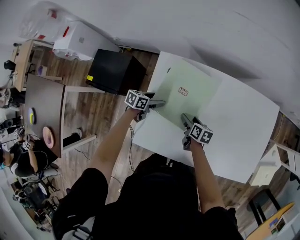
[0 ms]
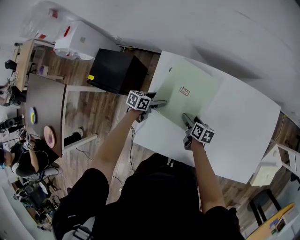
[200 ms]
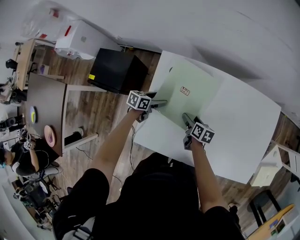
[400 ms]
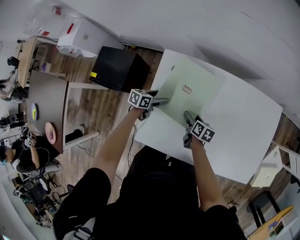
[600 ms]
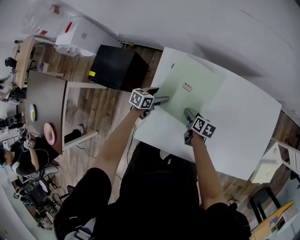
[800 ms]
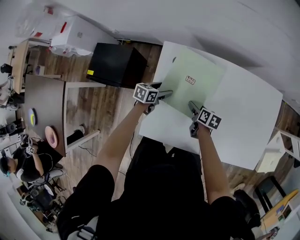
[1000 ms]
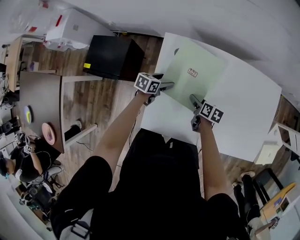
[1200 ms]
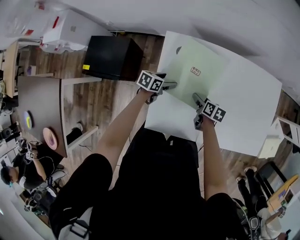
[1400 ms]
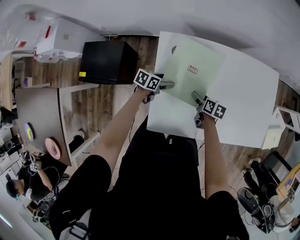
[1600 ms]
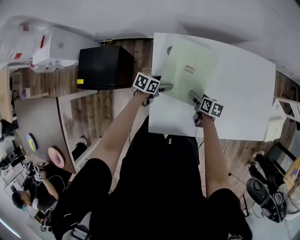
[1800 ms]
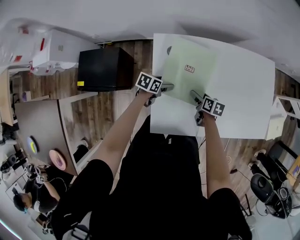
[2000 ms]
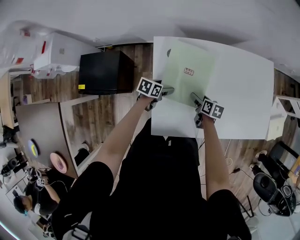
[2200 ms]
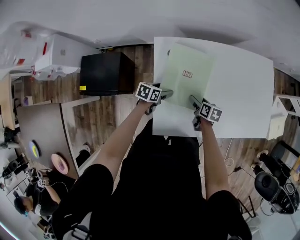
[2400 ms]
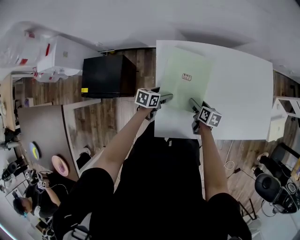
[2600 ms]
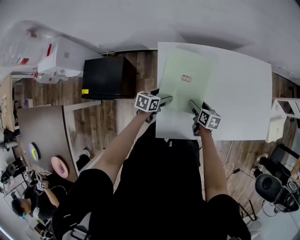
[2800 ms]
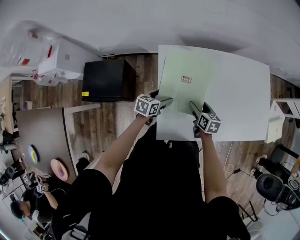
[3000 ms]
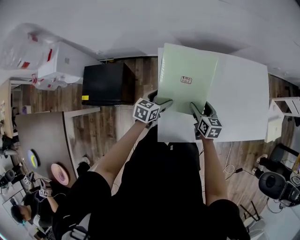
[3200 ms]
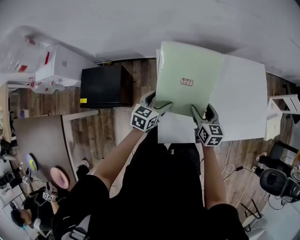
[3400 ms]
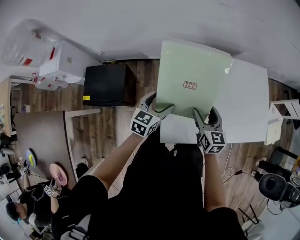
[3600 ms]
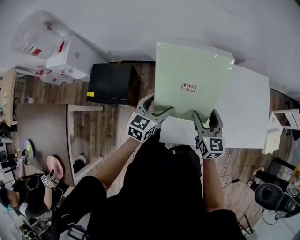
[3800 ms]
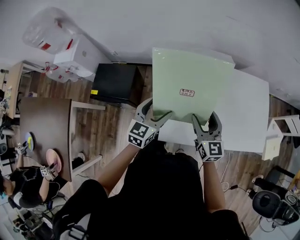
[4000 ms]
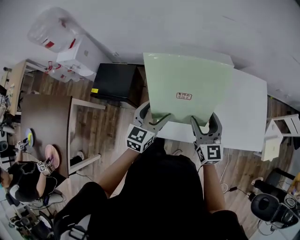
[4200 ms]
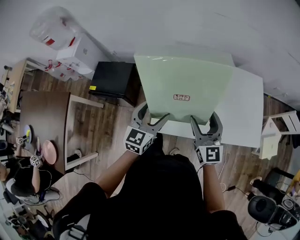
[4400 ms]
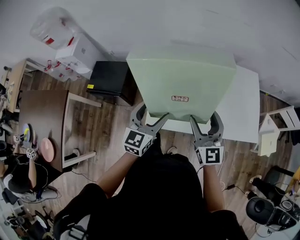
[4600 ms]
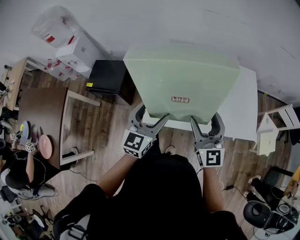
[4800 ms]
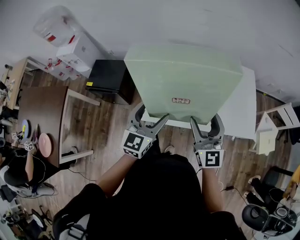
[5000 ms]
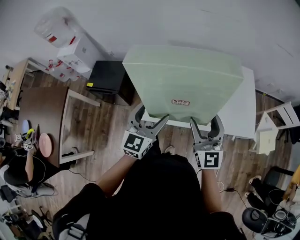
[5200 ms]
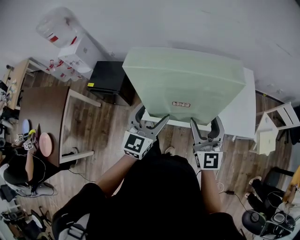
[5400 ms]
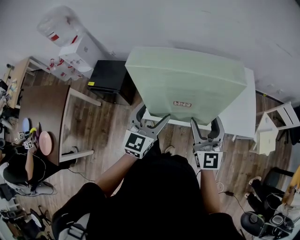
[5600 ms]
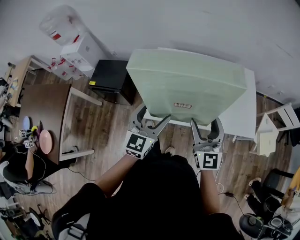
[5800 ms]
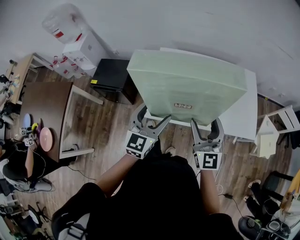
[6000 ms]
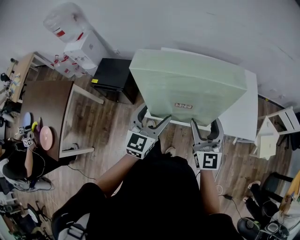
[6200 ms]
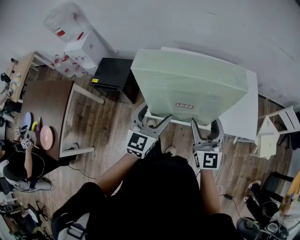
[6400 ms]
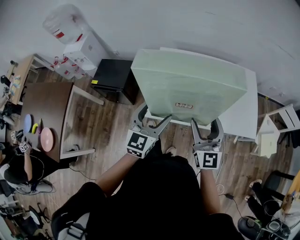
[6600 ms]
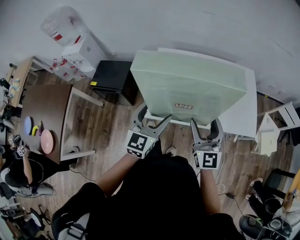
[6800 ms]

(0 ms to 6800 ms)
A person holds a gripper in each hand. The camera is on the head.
0 ms - 1400 ms: The grippers move only a little.
1400 ms - 2800 ms: The left gripper moves backward, about 5 cm; the right gripper ends up some 5 cm from where it was.
2800 ms - 4000 ms: The grippers both shift upward by approximately 25 cm. The right gripper tips its fingers upward by about 30 degrees. The left gripper swivels some 40 degrees.
4000 ms - 5400 ms: The two grippers go about 25 cm backward, to the right and upward. The right gripper turns by approximately 20 degrees.
5400 ms - 6800 ms: The grippers move only a little.

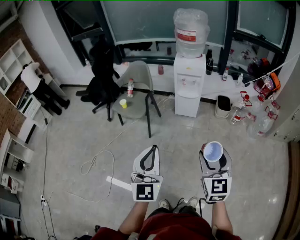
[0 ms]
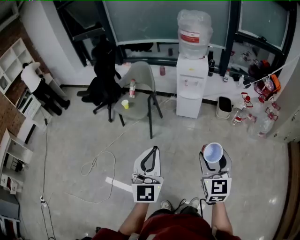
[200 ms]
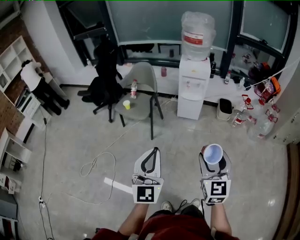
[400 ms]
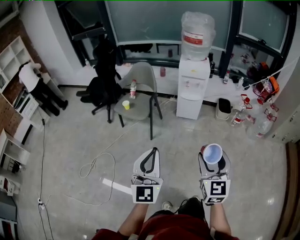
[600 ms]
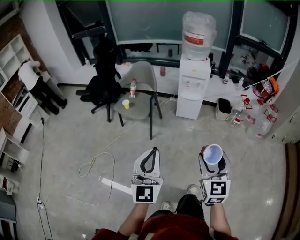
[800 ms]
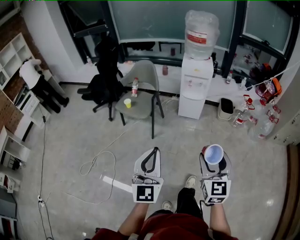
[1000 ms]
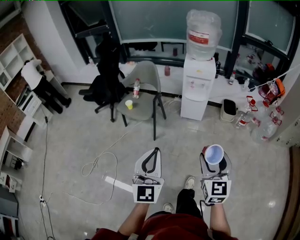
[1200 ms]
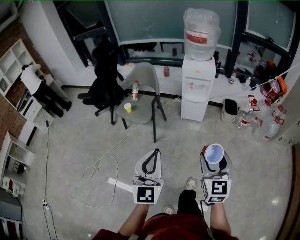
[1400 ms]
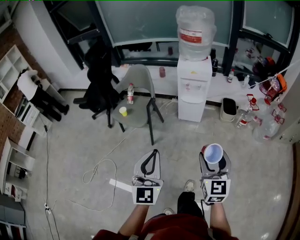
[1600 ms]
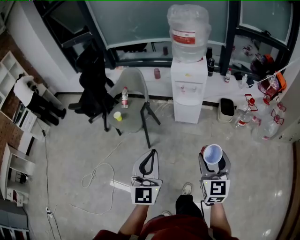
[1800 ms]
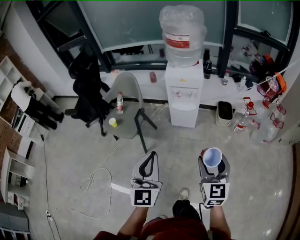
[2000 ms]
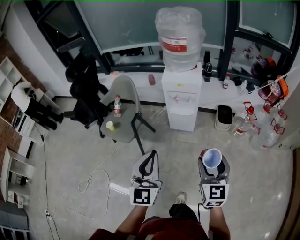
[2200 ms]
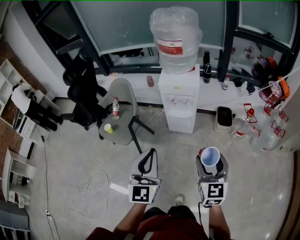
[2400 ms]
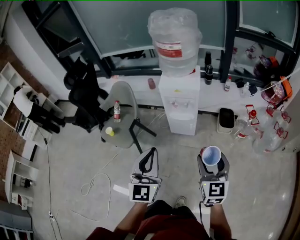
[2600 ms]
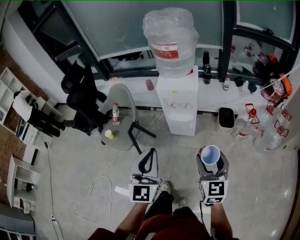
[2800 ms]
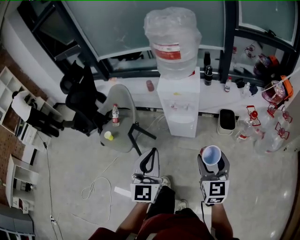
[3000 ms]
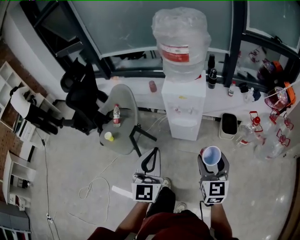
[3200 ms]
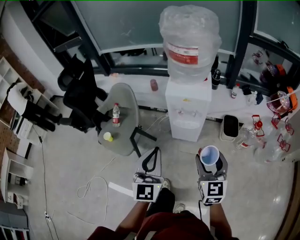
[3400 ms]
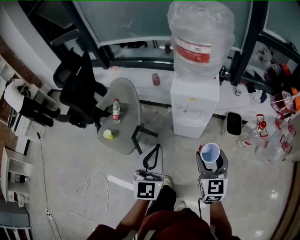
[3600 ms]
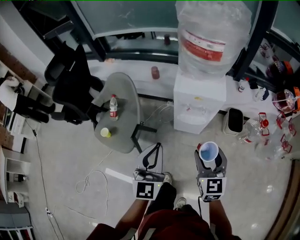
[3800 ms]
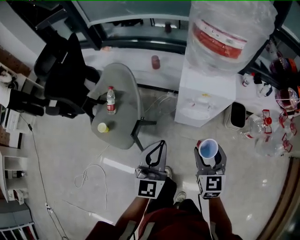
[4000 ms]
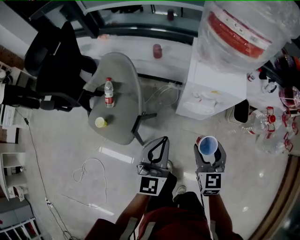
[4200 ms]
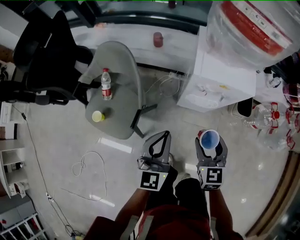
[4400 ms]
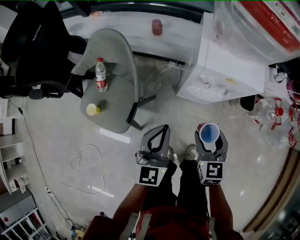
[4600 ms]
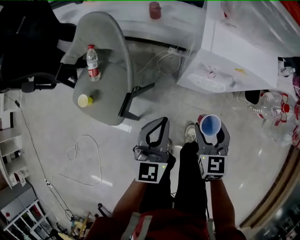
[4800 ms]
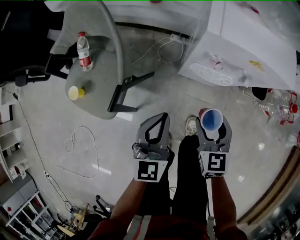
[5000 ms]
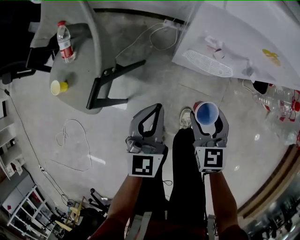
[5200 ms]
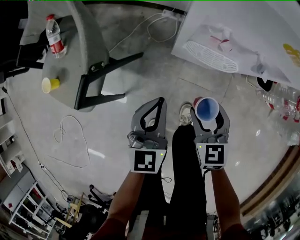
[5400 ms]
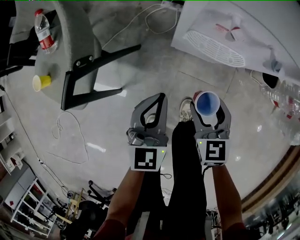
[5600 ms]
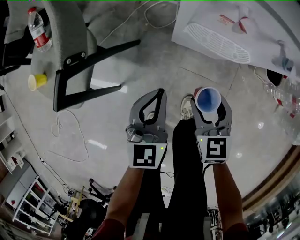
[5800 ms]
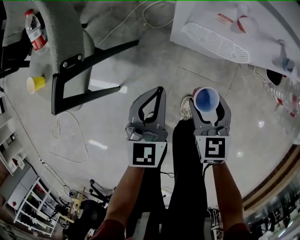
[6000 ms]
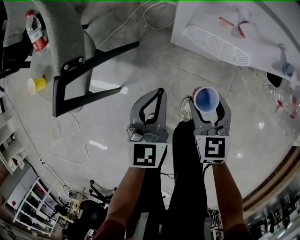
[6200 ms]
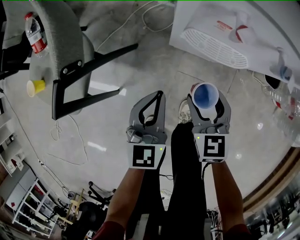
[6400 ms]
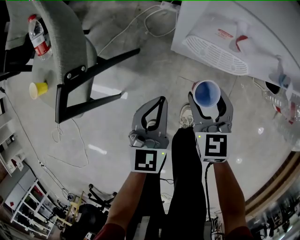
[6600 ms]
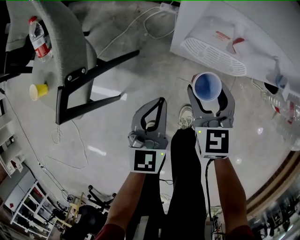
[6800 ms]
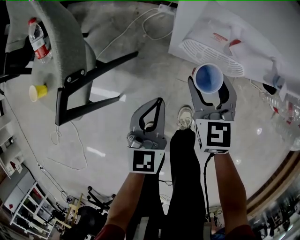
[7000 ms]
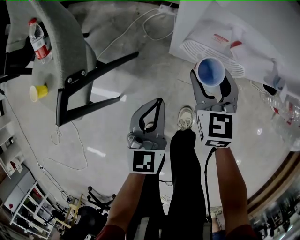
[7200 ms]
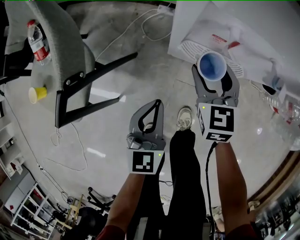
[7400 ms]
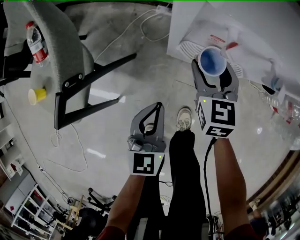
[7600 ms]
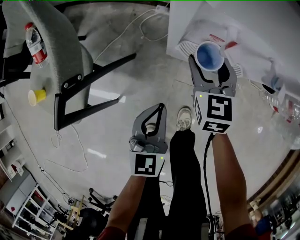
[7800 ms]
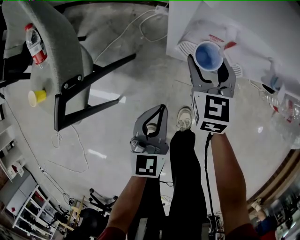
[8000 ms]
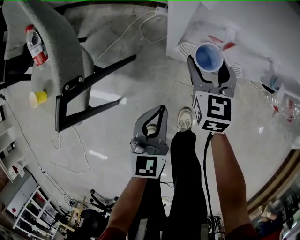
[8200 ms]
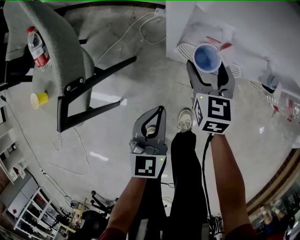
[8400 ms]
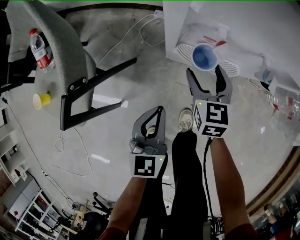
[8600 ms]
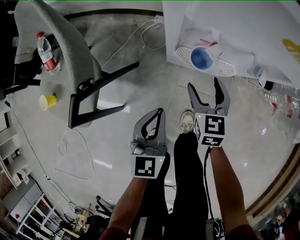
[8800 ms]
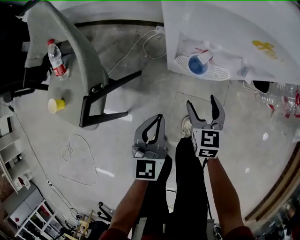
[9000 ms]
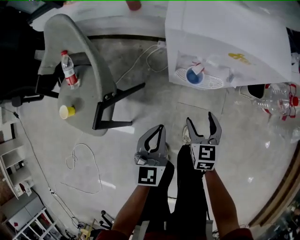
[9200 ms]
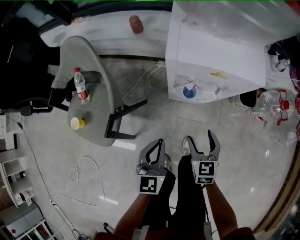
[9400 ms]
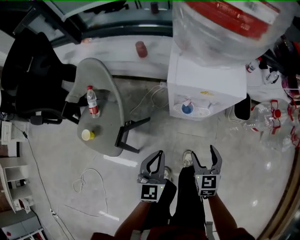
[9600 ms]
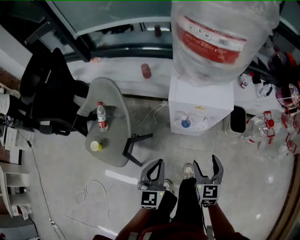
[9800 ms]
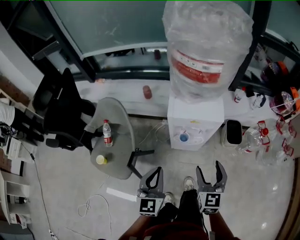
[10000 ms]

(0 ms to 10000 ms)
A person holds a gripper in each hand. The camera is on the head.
0 ms - 1400 ms: Both grippers move forward and to the left, about 10 cm.
1400 ms - 2800 ms: The two grippers go some 35 cm forward and to the right.
2800 ms - 4200 ms: The right gripper goes some 35 cm forward, to the left and downward; the left gripper moves forward, downward and to the left, roughly 35 cm.
4200 ms - 5800 ms: Both grippers move downward, some 35 cm.
5800 ms - 7200 ms: The right gripper shifts approximately 15 cm forward.
7200 ms - 8600 ms: The grippers move only a little.
8600 ms - 10000 ms: The left gripper travels upward by approximately 40 cm; the right gripper travels upward and backward by roughly 50 cm, and changes its angle by some 20 degrees.

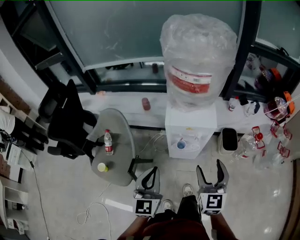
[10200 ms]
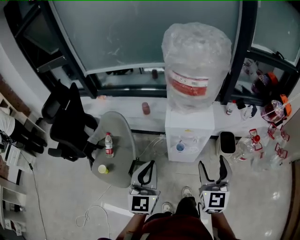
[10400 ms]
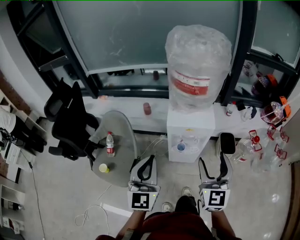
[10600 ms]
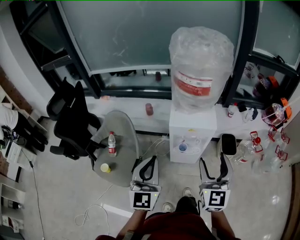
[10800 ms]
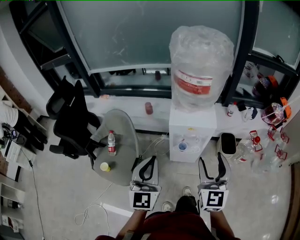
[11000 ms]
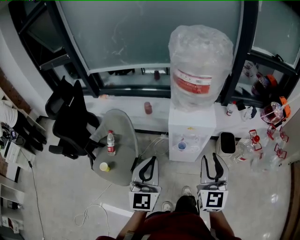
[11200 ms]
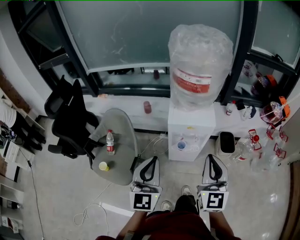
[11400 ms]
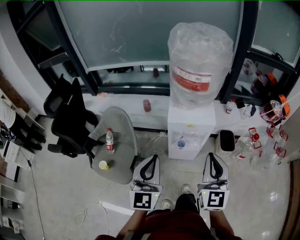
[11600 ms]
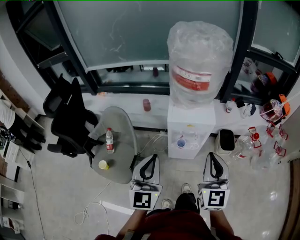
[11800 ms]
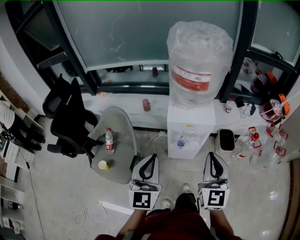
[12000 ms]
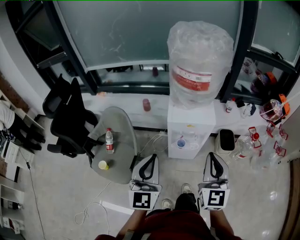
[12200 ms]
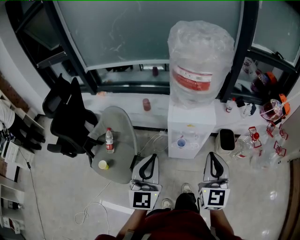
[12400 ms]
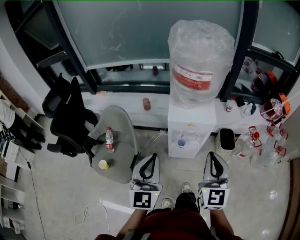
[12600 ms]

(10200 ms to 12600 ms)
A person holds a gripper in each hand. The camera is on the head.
10200 ms - 11400 ms: The grippers both shift upward by about 10 cm. The right gripper closes.
11400 ms - 12600 ms: The two grippers keep their place.

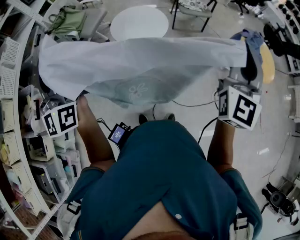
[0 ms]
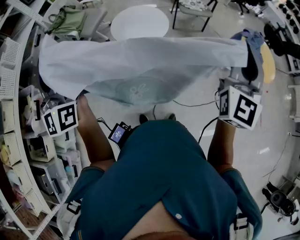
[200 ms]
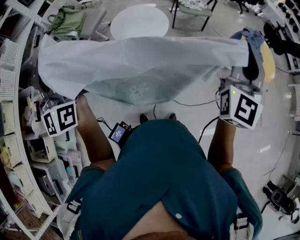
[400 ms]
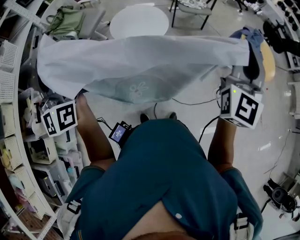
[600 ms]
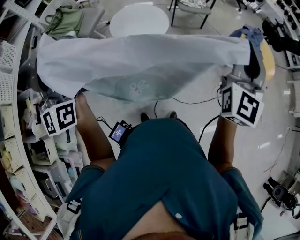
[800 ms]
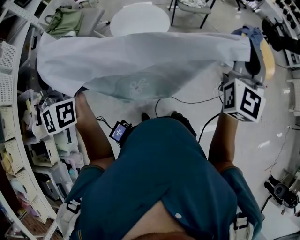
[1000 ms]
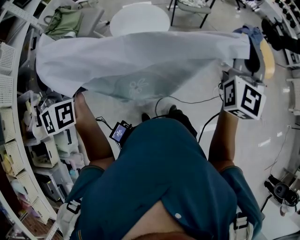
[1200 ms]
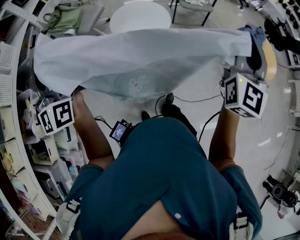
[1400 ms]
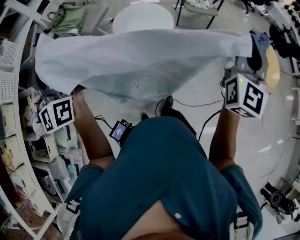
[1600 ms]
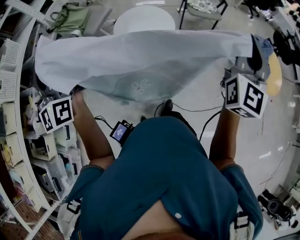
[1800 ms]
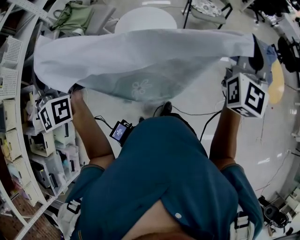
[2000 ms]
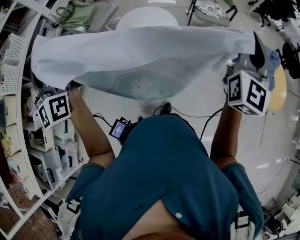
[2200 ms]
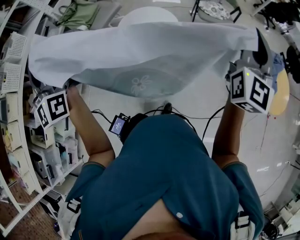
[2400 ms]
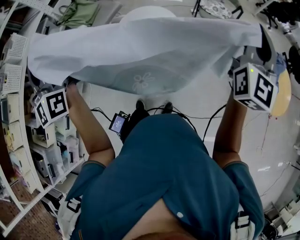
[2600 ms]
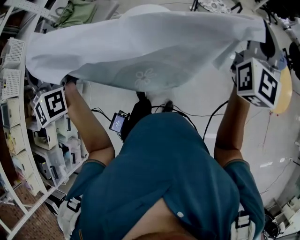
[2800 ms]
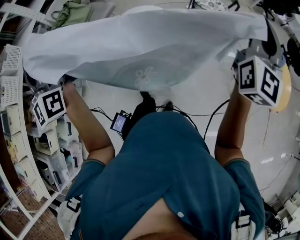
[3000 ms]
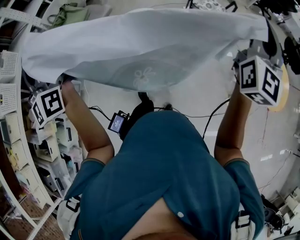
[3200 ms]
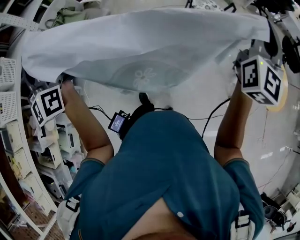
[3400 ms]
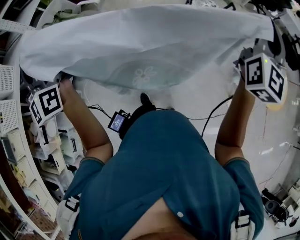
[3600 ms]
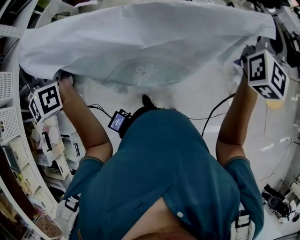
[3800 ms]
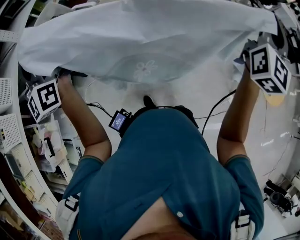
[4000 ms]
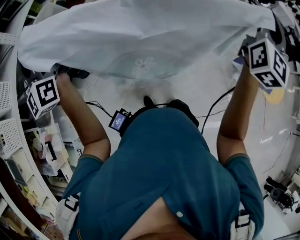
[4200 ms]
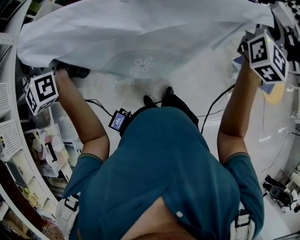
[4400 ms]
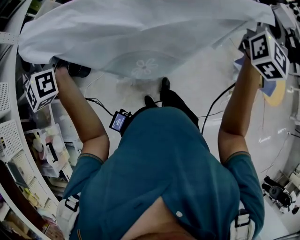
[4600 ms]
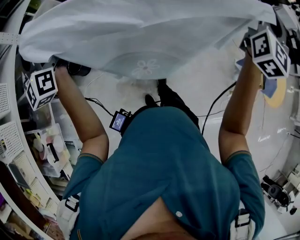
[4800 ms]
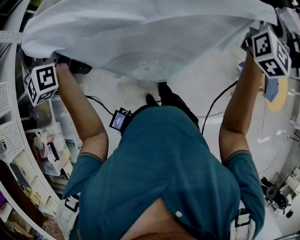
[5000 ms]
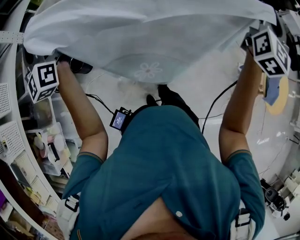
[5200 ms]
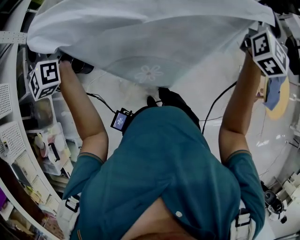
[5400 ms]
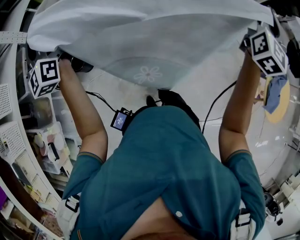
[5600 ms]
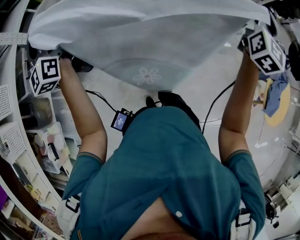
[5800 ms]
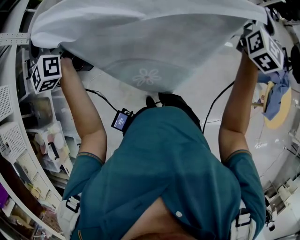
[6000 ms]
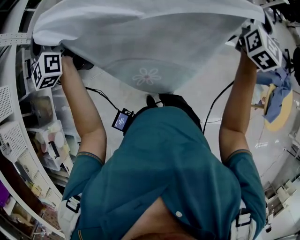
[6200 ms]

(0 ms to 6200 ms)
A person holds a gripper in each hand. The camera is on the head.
0 ms - 1600 ms: Both grippers travel together forward, approximately 10 cm.
1600 ms - 3200 ms: The left gripper goes some 15 cm forward, while the right gripper is displaced forward and to the right by approximately 25 cm.
3200 ms - 4600 ms: The two grippers go roughly 25 cm forward and to the left.
4600 ms - 6200 ms: The grippers both shift forward and downward by approximately 25 cm.
